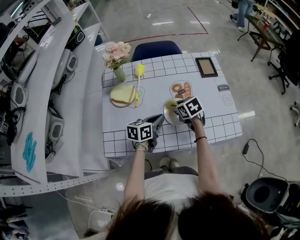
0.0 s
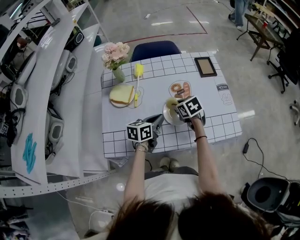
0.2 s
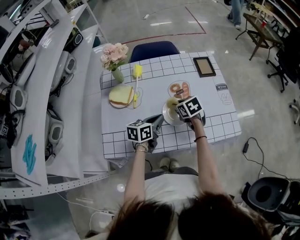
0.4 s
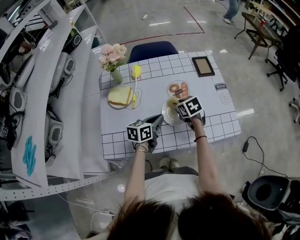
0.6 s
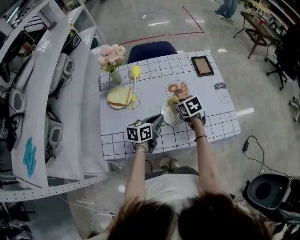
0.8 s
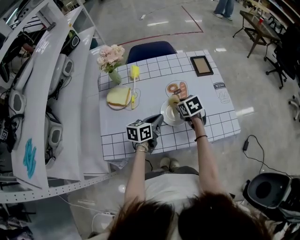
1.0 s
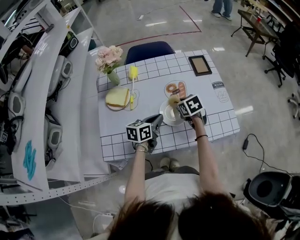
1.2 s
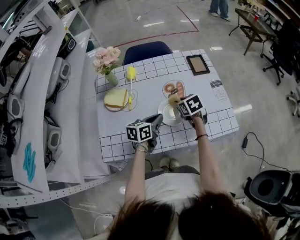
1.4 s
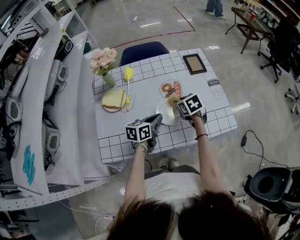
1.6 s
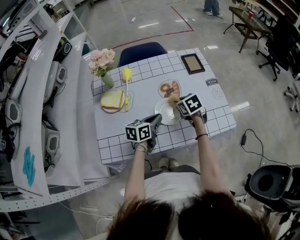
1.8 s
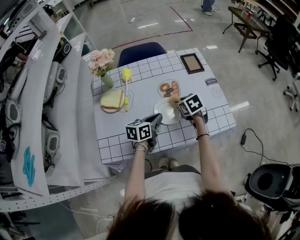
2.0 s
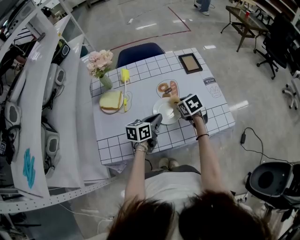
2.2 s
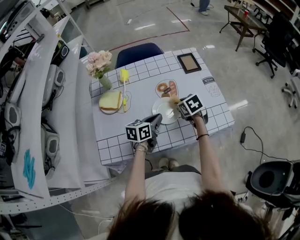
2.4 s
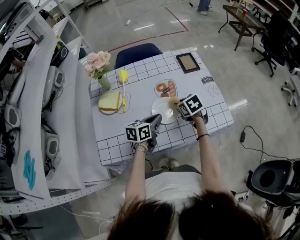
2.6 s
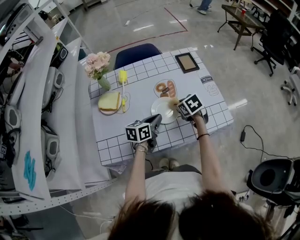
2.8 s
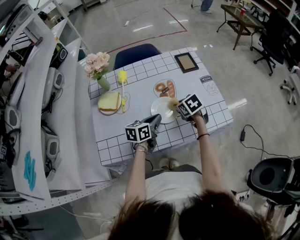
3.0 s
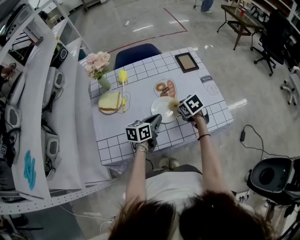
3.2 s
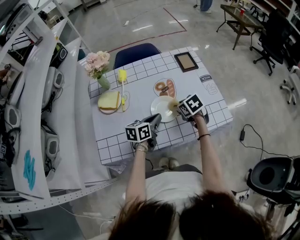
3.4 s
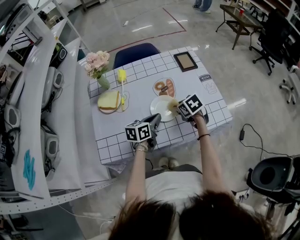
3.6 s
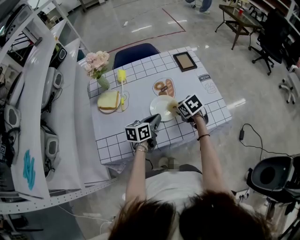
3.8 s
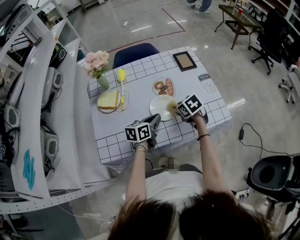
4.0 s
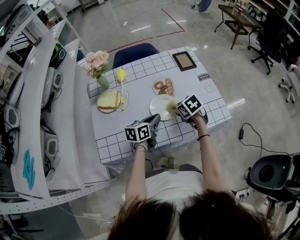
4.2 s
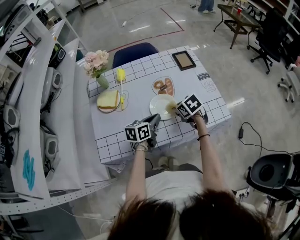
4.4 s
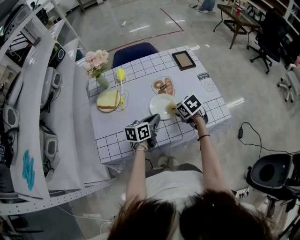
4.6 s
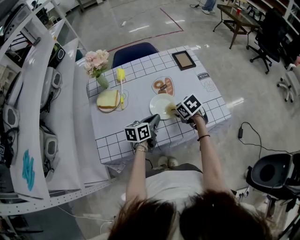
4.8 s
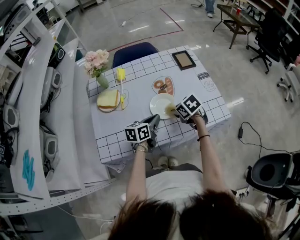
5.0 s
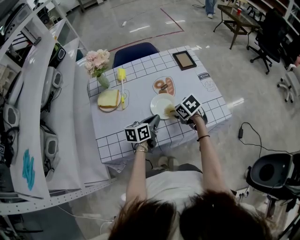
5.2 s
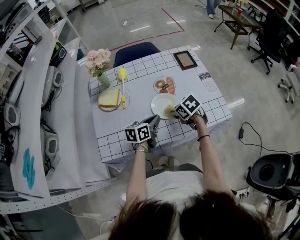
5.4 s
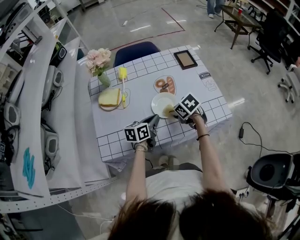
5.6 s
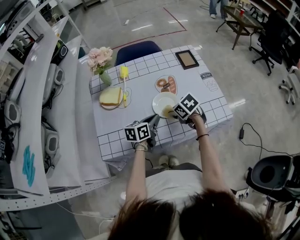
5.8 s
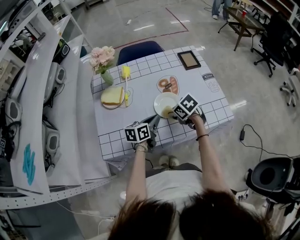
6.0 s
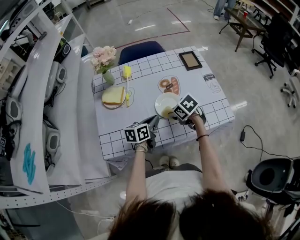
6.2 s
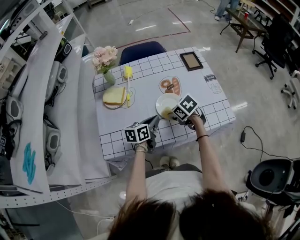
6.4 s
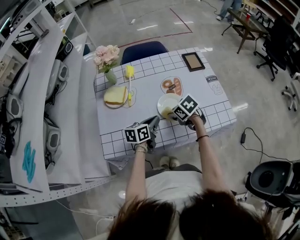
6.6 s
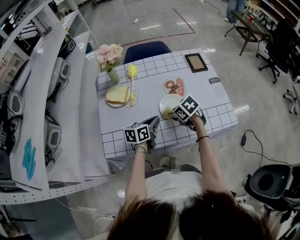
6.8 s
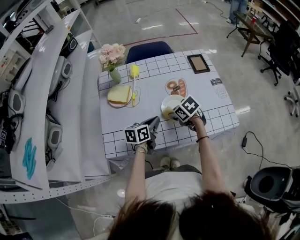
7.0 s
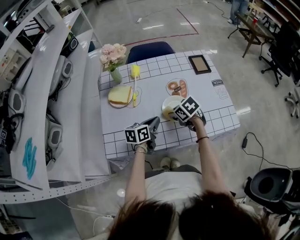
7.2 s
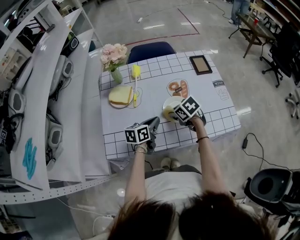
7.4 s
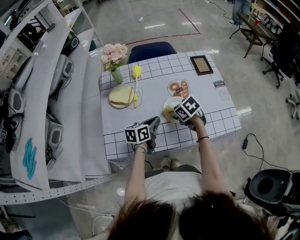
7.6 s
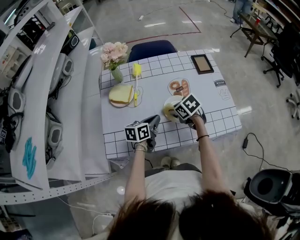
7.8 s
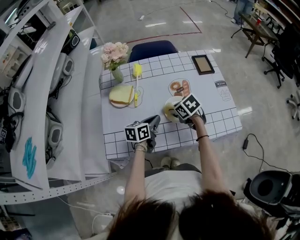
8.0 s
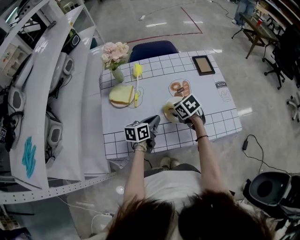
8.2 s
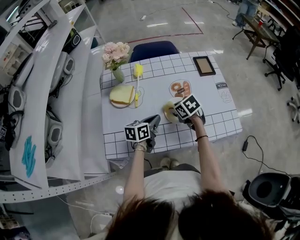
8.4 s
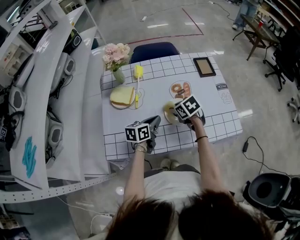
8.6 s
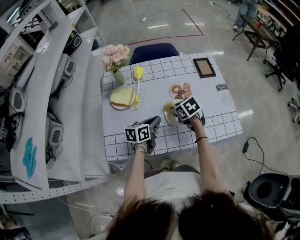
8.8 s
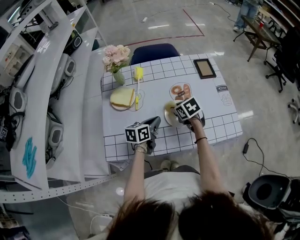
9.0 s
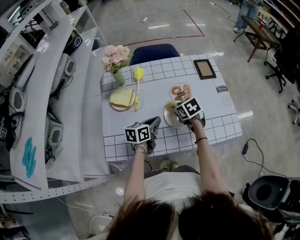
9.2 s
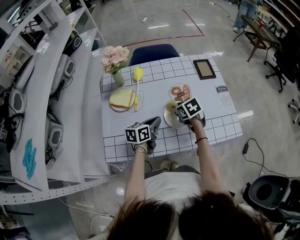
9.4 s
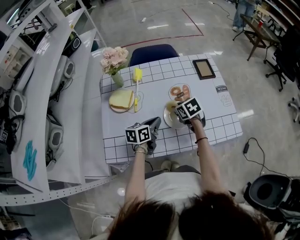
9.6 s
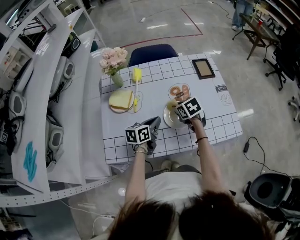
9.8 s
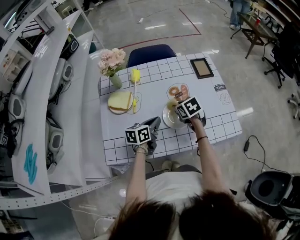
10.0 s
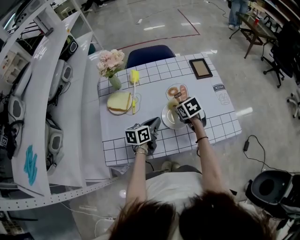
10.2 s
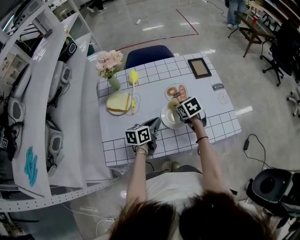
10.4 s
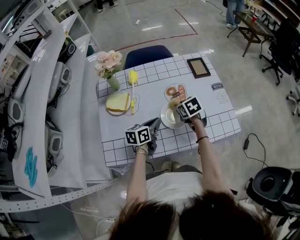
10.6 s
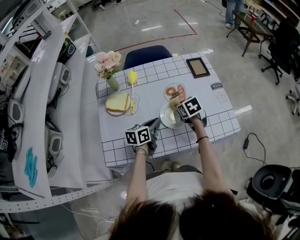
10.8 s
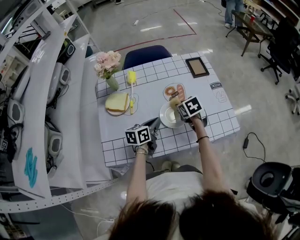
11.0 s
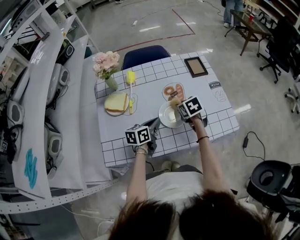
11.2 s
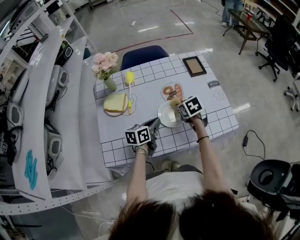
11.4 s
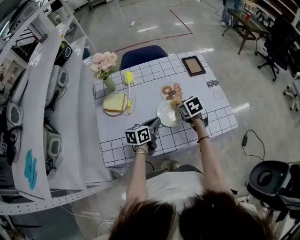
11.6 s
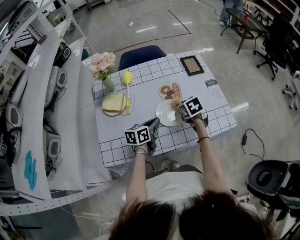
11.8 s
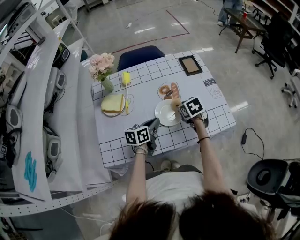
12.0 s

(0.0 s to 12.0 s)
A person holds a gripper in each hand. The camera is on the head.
0.0 s - 1.6 s: The right gripper goes roughly 5 cm to the right.
1.6 s - 3.0 s: The grippers move only a little.
3.0 s - 4.4 s: The grippers make only small movements.
4.4 s - 6.0 s: The right gripper moves to the left, some 5 cm.
6.0 s - 7.6 s: The right gripper ends up some 5 cm from where it was.
7.6 s - 9.0 s: The grippers make only small movements.
9.0 s - 10.4 s: The grippers make only small movements.
10.4 s - 12.0 s: The right gripper ends up some 5 cm from where it was.

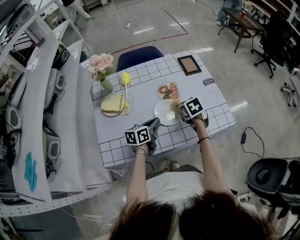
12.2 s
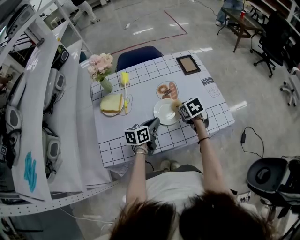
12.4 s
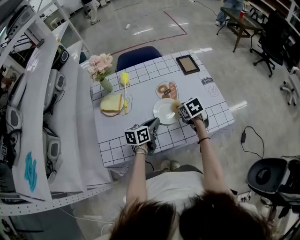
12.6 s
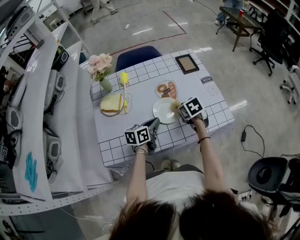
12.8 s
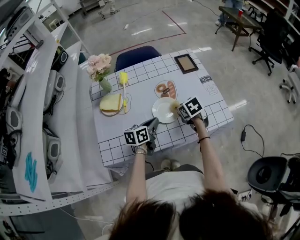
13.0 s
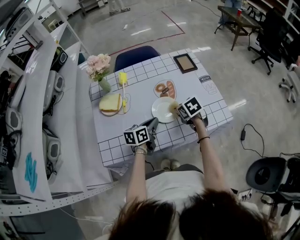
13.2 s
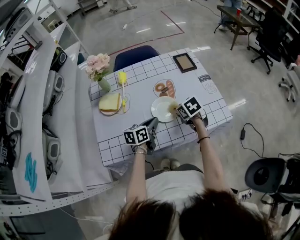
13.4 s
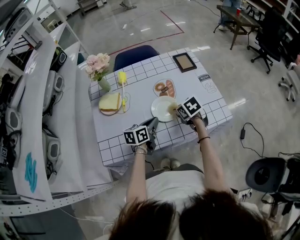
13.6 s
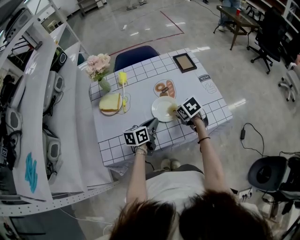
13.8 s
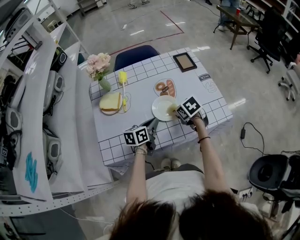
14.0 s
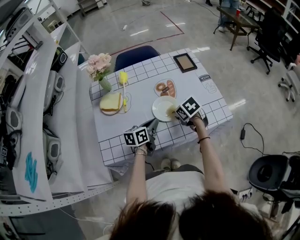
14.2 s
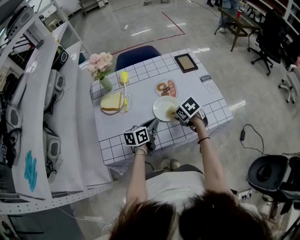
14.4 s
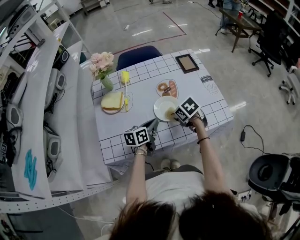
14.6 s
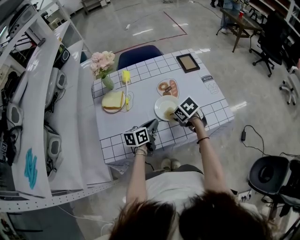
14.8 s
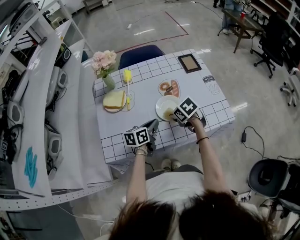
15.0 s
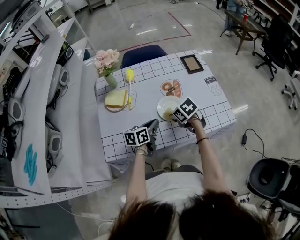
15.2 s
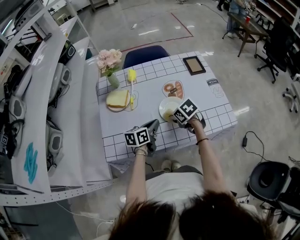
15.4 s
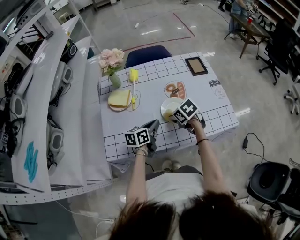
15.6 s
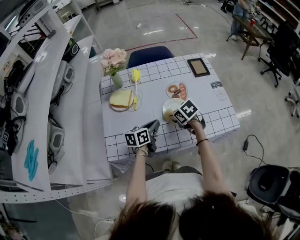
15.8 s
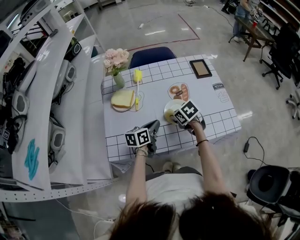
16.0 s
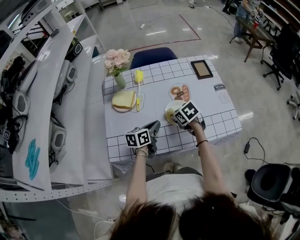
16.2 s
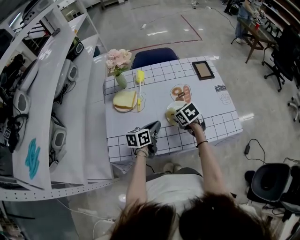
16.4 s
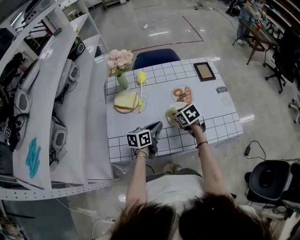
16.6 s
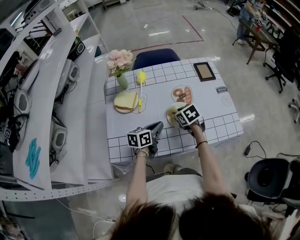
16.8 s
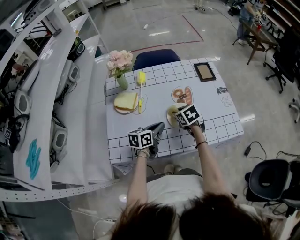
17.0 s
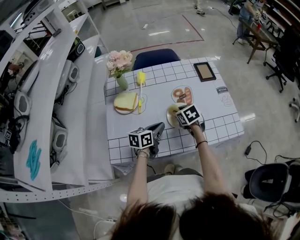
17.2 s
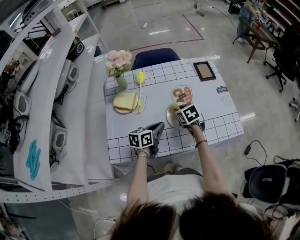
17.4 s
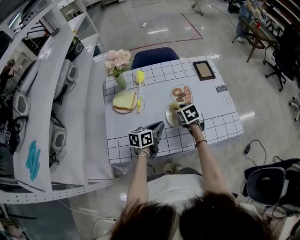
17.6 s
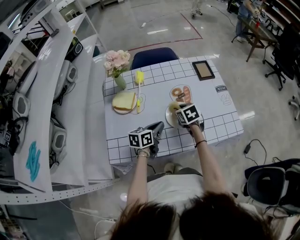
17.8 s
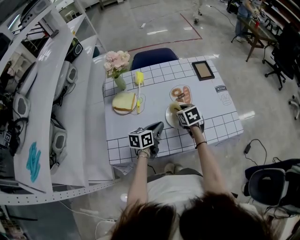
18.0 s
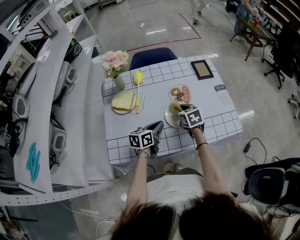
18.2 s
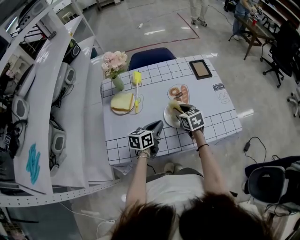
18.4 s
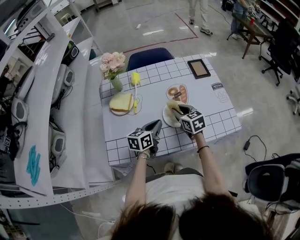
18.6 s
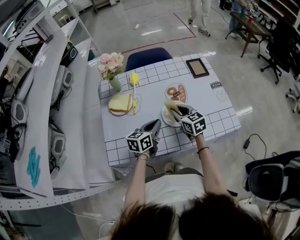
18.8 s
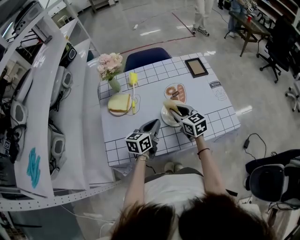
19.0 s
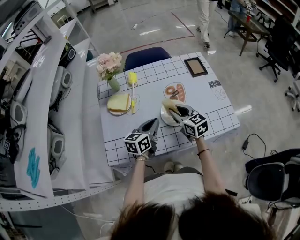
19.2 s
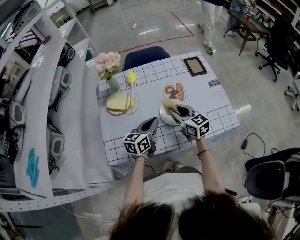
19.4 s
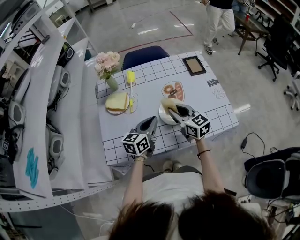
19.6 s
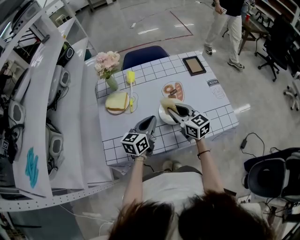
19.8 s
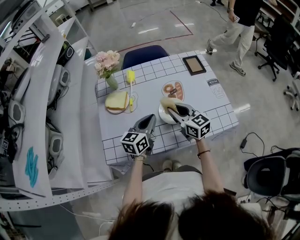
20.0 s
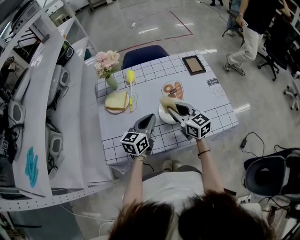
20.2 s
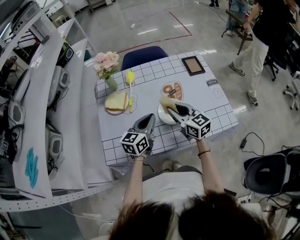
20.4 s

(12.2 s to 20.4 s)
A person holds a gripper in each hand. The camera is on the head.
12.2 s - 13.8 s: The grippers make only small movements.
13.8 s - 15.4 s: The right gripper moves to the left, some 5 cm.
15.4 s - 17.2 s: The right gripper moves forward, approximately 5 cm.
17.2 s - 18.8 s: The right gripper shifts by some 5 cm, and turns by about 30 degrees.
18.8 s - 20.4 s: Both grippers travel together upward, approximately 5 cm.

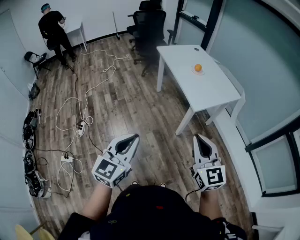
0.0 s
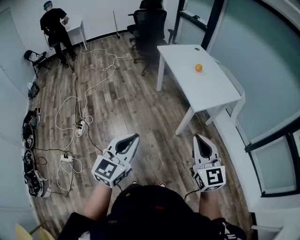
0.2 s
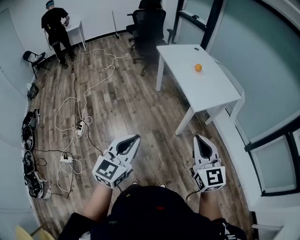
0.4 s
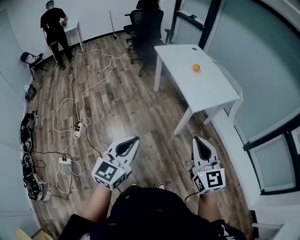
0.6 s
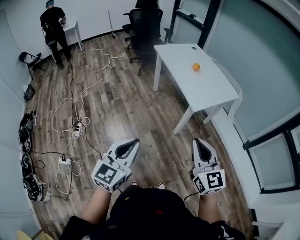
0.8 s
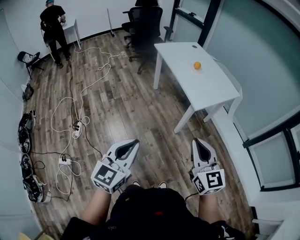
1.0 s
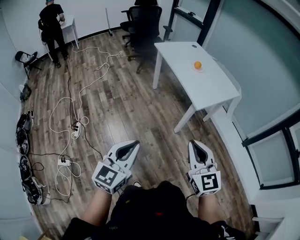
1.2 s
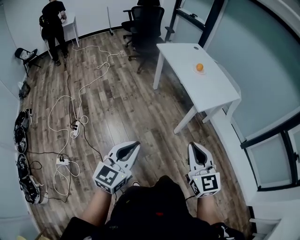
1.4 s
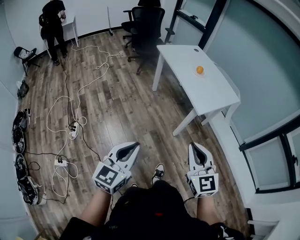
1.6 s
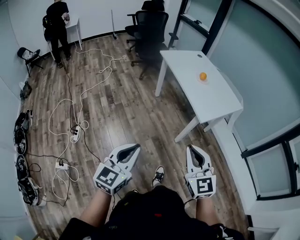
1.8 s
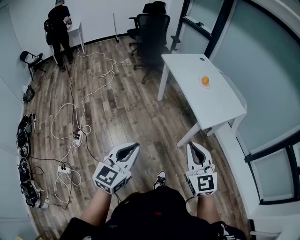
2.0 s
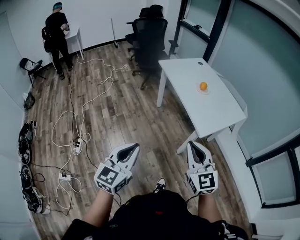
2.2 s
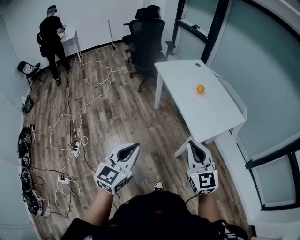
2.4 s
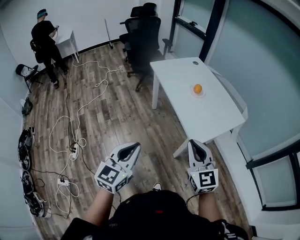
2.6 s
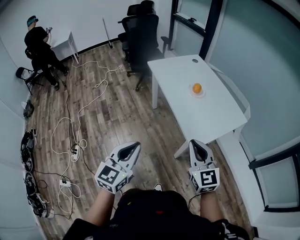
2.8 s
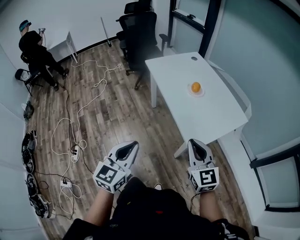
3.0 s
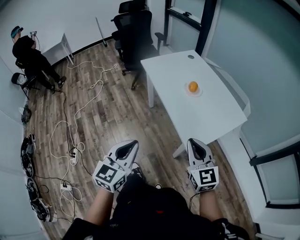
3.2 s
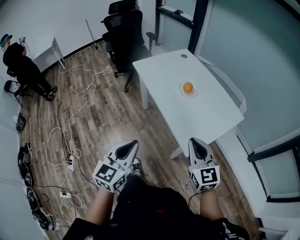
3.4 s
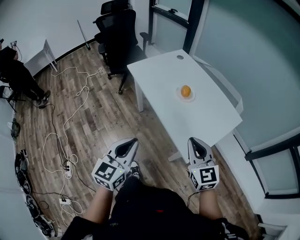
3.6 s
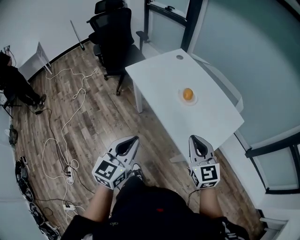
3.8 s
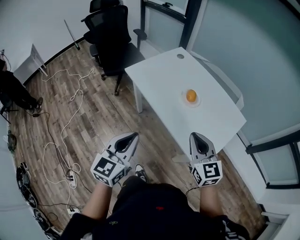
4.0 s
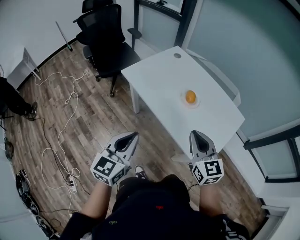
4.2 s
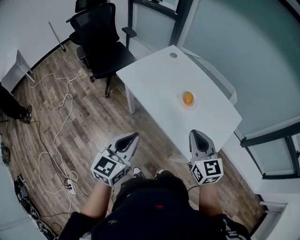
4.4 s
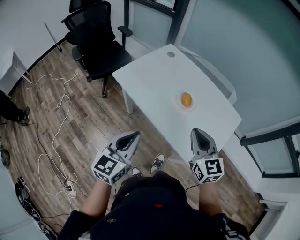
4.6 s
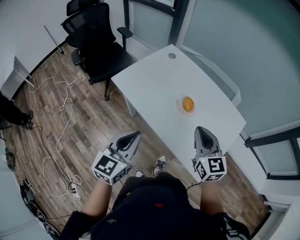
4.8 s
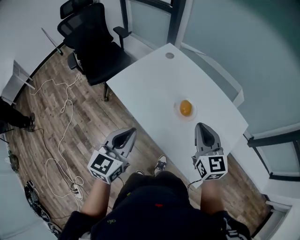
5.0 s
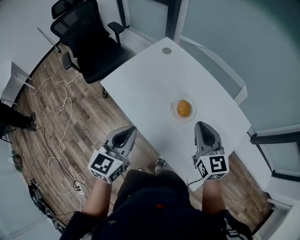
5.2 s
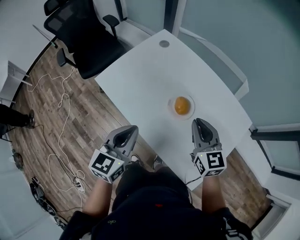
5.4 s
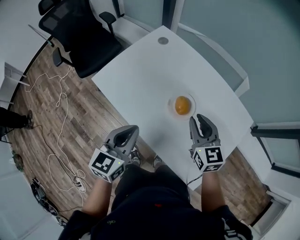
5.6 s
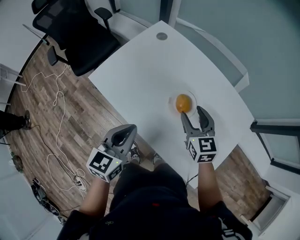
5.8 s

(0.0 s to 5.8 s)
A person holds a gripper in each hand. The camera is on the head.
0.0 s - 1.4 s: The grippers both shift to the left by some 10 cm.
1.4 s - 2.8 s: Both grippers move forward, some 35 cm.
2.8 s - 4.4 s: The two grippers go about 35 cm forward. The right gripper rotates approximately 20 degrees; the left gripper rotates about 20 degrees.
4.4 s - 5.8 s: The left gripper shifts roughly 30 cm forward, while the right gripper travels forward and downward by about 35 cm, and opens.
